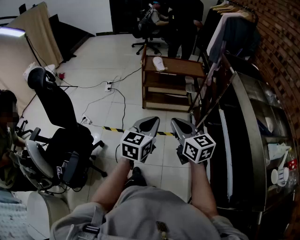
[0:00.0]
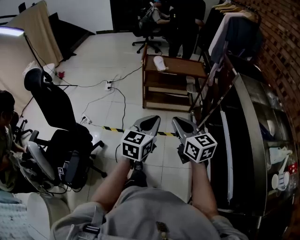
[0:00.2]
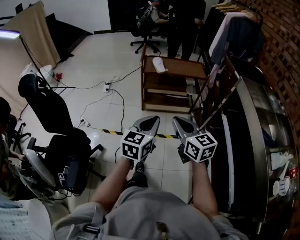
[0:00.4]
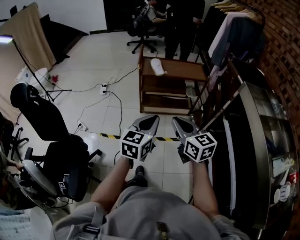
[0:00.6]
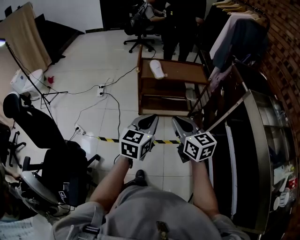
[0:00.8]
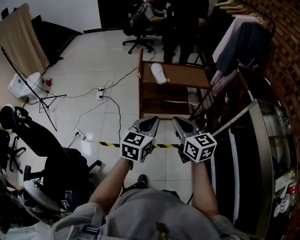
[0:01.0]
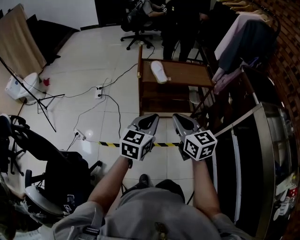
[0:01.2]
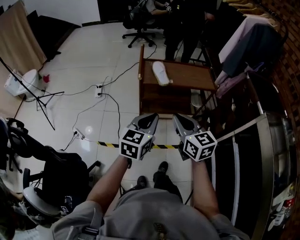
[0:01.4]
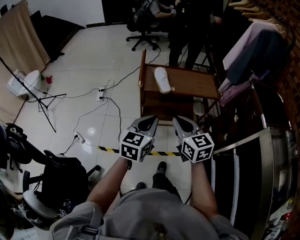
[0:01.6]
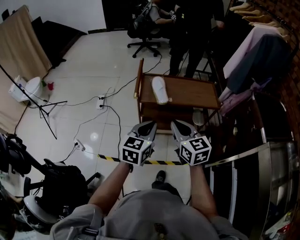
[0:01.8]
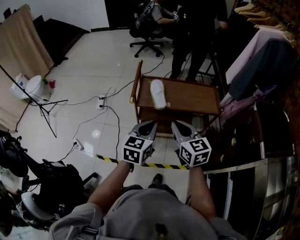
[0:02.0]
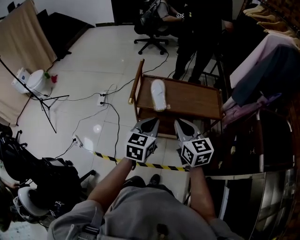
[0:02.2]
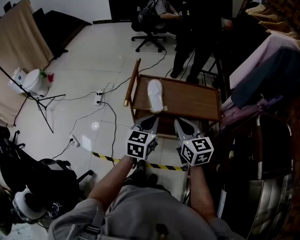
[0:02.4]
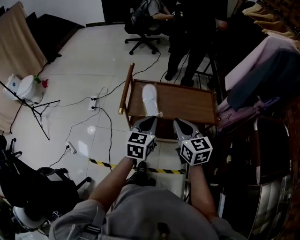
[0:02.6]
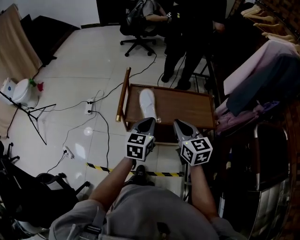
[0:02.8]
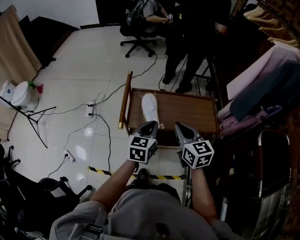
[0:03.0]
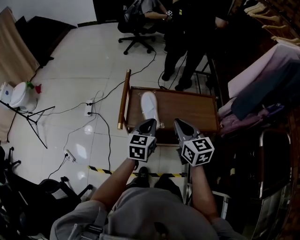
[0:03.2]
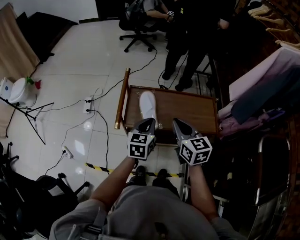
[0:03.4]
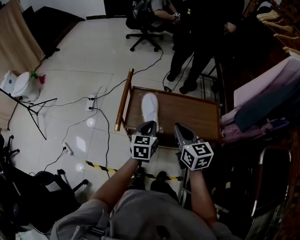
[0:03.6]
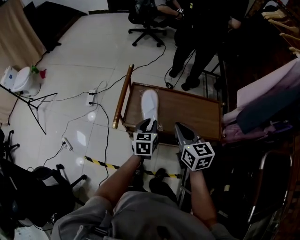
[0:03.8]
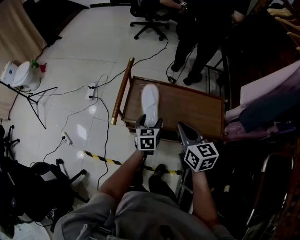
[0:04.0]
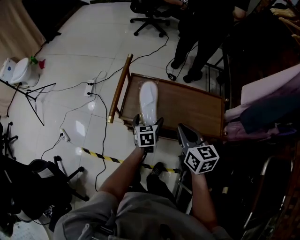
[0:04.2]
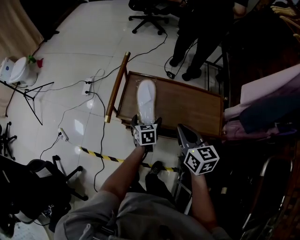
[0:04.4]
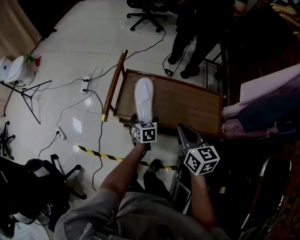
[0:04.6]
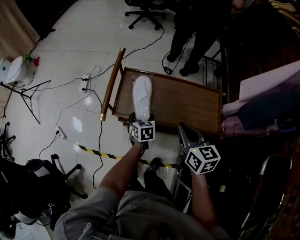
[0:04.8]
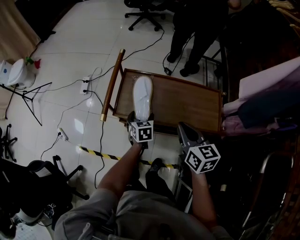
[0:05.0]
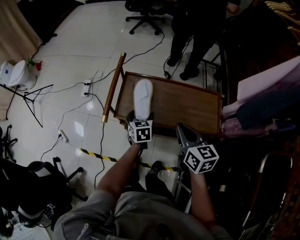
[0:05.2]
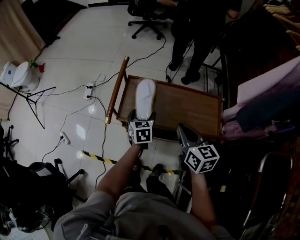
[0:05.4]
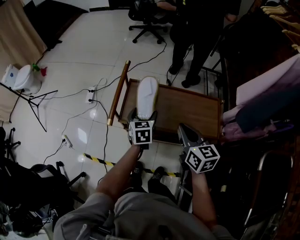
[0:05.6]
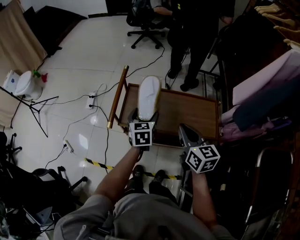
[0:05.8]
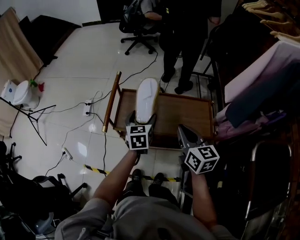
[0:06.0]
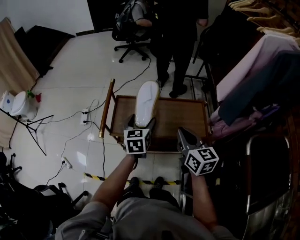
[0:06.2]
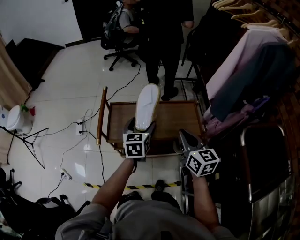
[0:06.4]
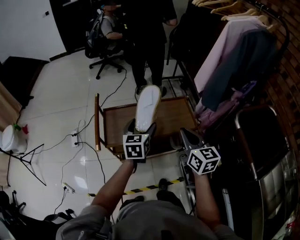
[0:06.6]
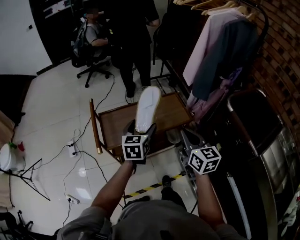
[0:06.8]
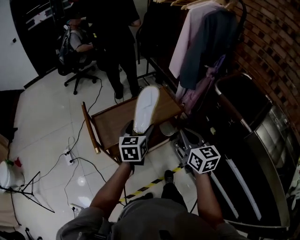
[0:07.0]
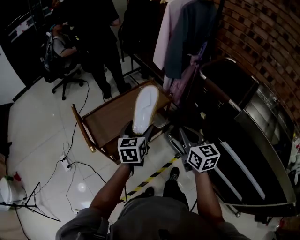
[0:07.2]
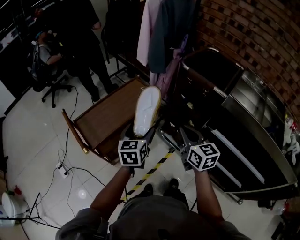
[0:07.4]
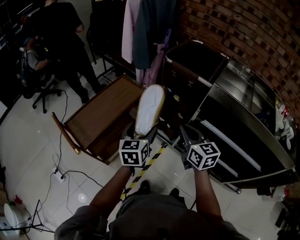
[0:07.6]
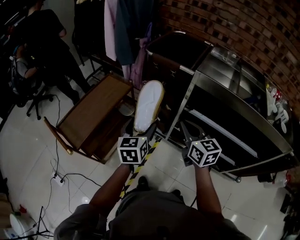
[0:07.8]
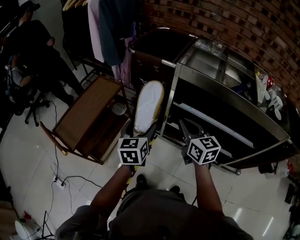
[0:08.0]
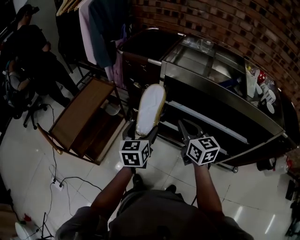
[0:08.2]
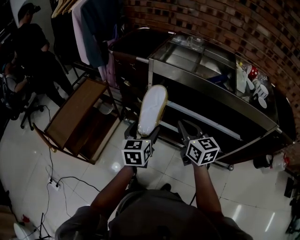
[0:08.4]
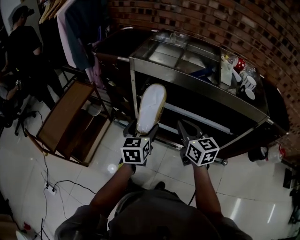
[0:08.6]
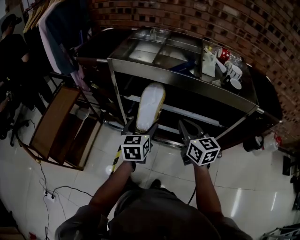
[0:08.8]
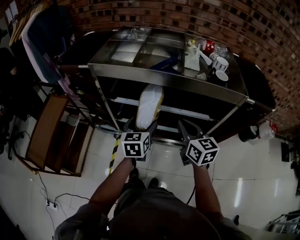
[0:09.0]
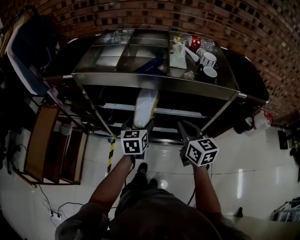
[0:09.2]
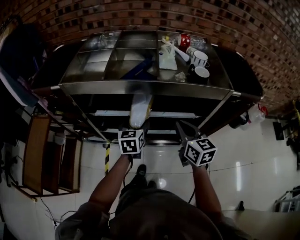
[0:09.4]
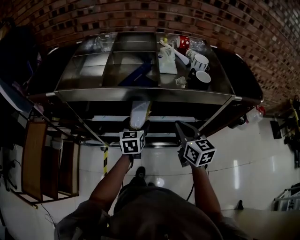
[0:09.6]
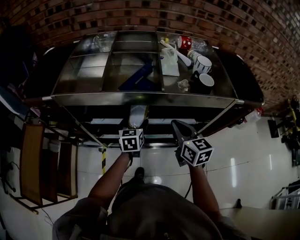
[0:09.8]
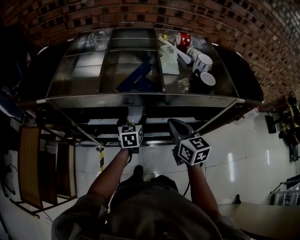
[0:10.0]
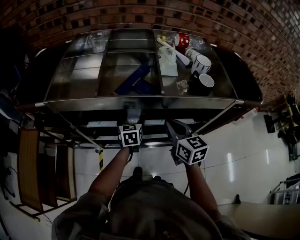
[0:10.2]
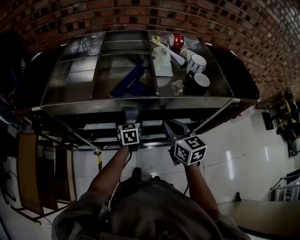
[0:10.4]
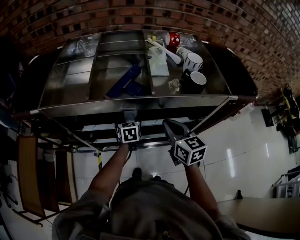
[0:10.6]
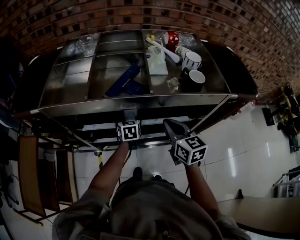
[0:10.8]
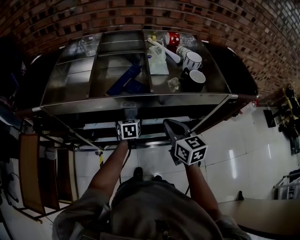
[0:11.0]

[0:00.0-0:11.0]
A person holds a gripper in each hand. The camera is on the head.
0:00.0 to 0:01.6: Both grippers travel together forward, about 40 cm.
0:01.6 to 0:03.2: Both grippers travel together forward, roughly 30 cm.
0:03.2 to 0:04.8: The left gripper heads downward, covering approximately 20 cm, turns by roughly 40 degrees, and opens up, while the right gripper goes some 10 cm downward and to the right.
0:04.8 to 0:06.2: The left gripper is displaced upward by roughly 20 cm, and swivels some 30 degrees, while the right gripper is displaced upward by about 10 cm.
0:06.2 to 0:07.8: The right gripper changes place by roughly 40 cm, and rotates some 60 degrees, while the left gripper changes place by some 40 cm, and changes its angle by roughly 60 degrees.
0:07.8 to 0:09.4: The pair of grippers is taken some 50 cm. The left gripper swivels approximately 30 degrees. Meanwhile the right gripper turns by roughly 30 degrees.
0:09.4 to 0:11.0: The right gripper heads forward, covering some 5 cm. The left gripper goes approximately 15 cm forward and downward.

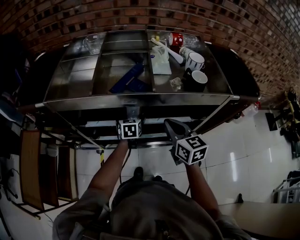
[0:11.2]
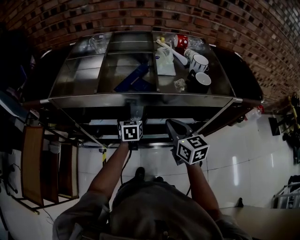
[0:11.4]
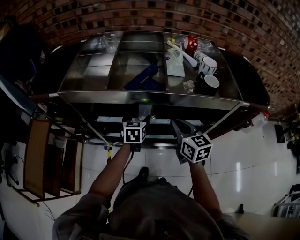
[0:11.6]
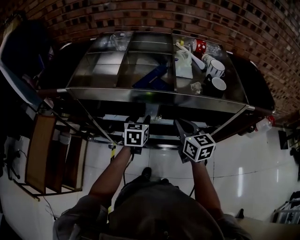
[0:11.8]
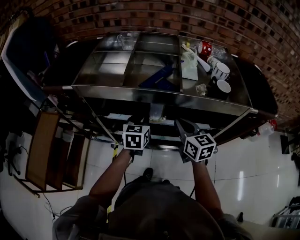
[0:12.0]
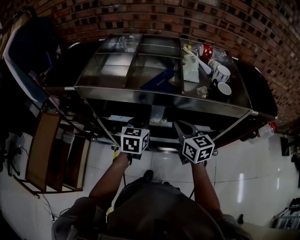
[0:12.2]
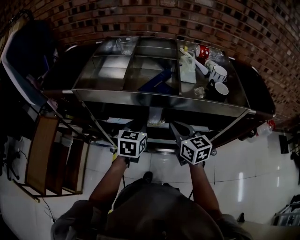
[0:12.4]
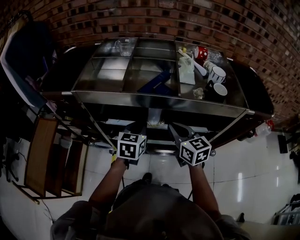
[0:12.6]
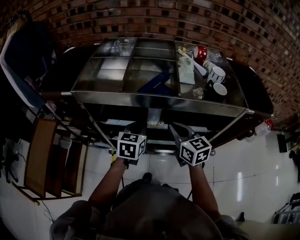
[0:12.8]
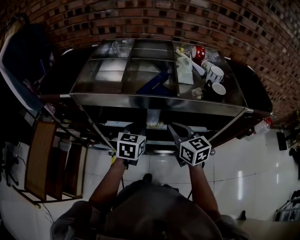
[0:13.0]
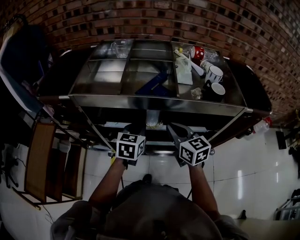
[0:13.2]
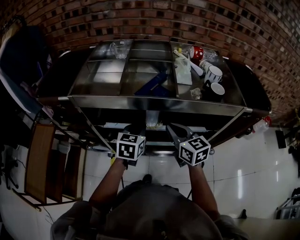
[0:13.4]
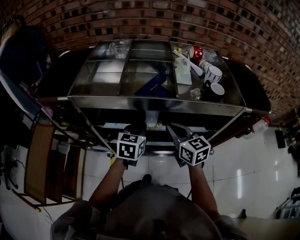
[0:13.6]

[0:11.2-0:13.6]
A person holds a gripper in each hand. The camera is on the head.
0:11.2 to 0:12.4: The left gripper is displaced upward, backward and to the left by roughly 15 cm, and closes up, while the right gripper goes about 5 cm to the left.
0:12.4 to 0:13.6: There are only small adjustments of the grippers.

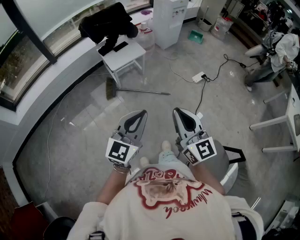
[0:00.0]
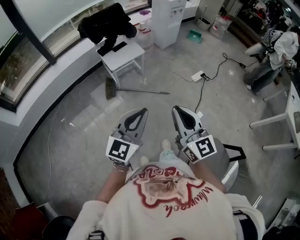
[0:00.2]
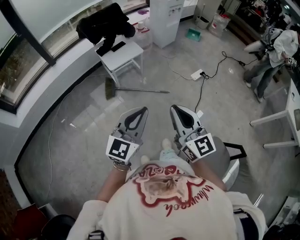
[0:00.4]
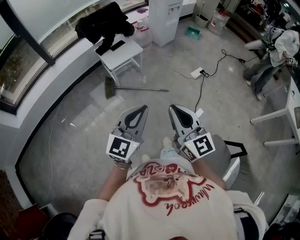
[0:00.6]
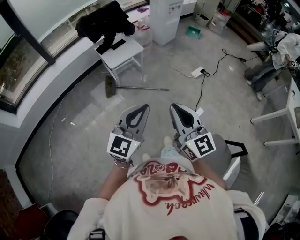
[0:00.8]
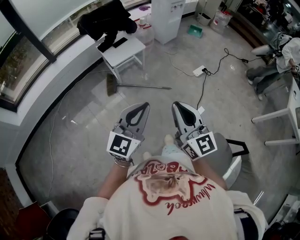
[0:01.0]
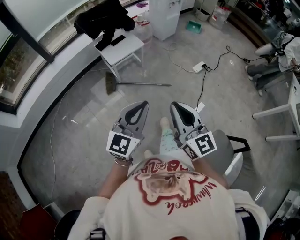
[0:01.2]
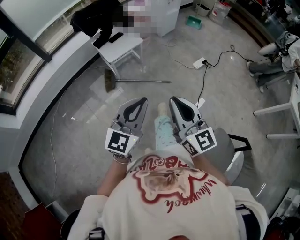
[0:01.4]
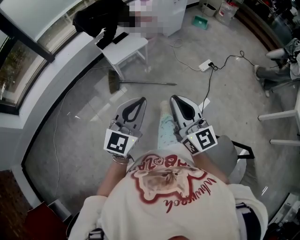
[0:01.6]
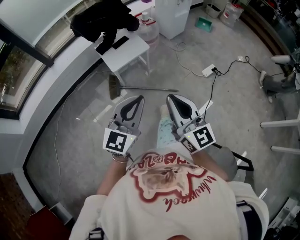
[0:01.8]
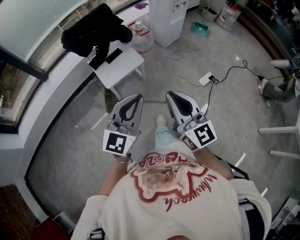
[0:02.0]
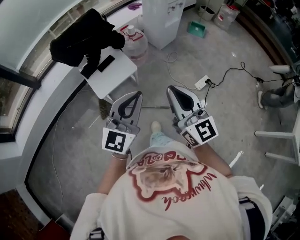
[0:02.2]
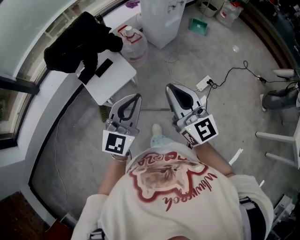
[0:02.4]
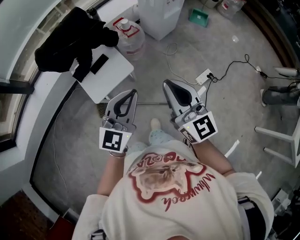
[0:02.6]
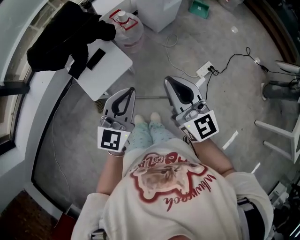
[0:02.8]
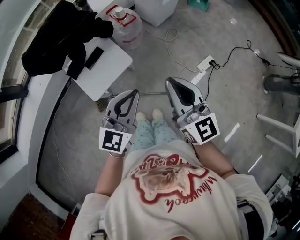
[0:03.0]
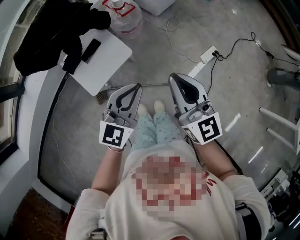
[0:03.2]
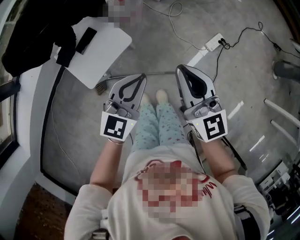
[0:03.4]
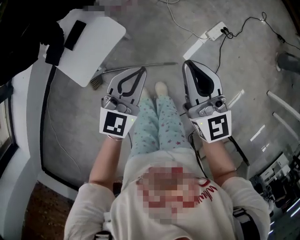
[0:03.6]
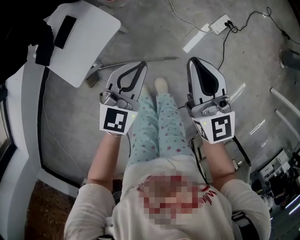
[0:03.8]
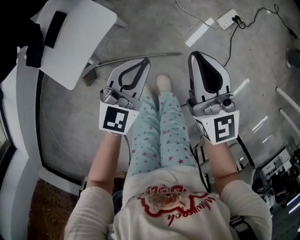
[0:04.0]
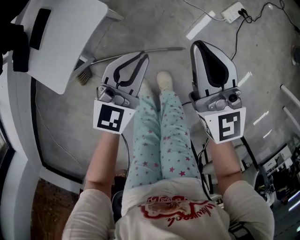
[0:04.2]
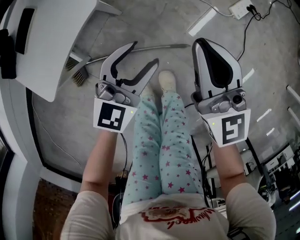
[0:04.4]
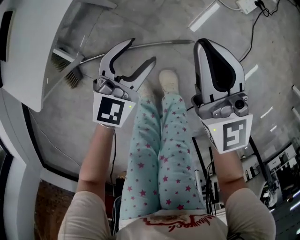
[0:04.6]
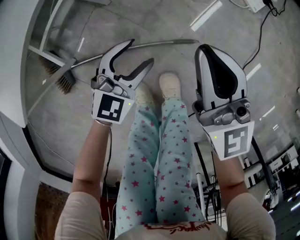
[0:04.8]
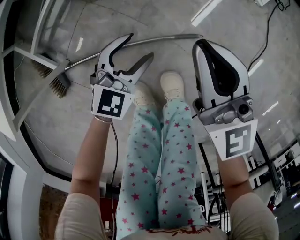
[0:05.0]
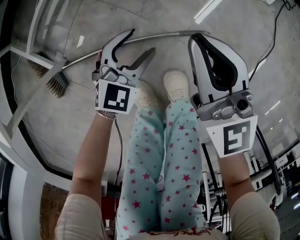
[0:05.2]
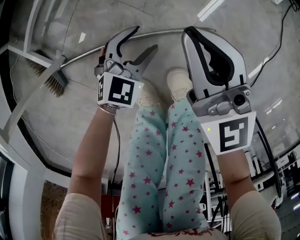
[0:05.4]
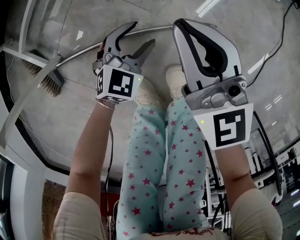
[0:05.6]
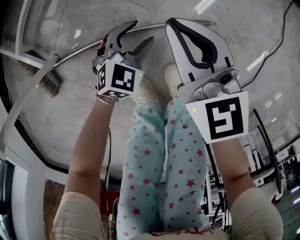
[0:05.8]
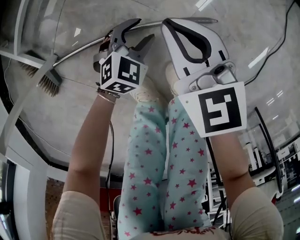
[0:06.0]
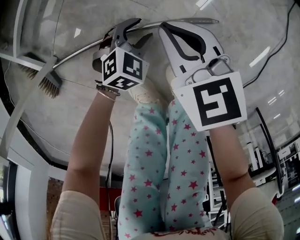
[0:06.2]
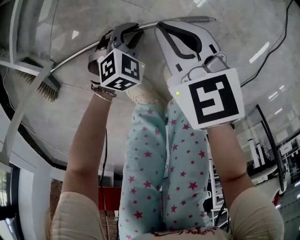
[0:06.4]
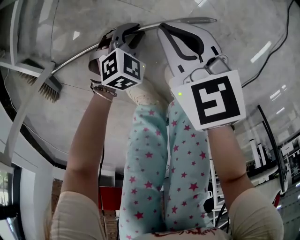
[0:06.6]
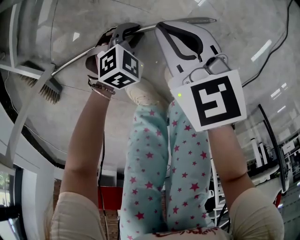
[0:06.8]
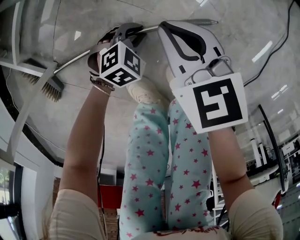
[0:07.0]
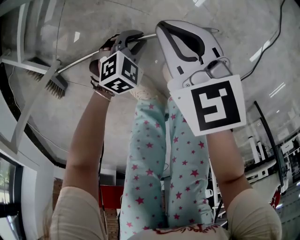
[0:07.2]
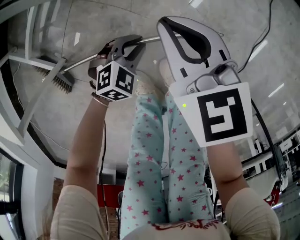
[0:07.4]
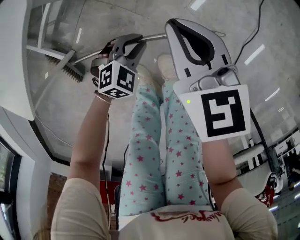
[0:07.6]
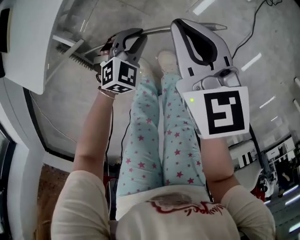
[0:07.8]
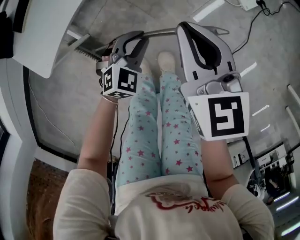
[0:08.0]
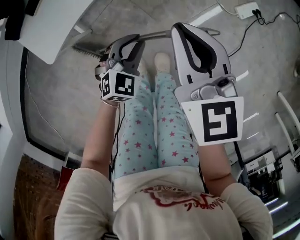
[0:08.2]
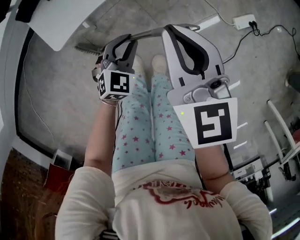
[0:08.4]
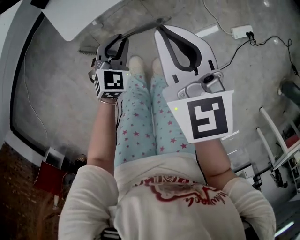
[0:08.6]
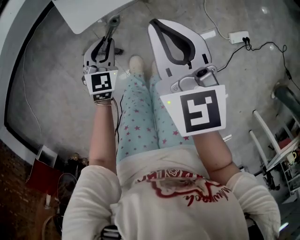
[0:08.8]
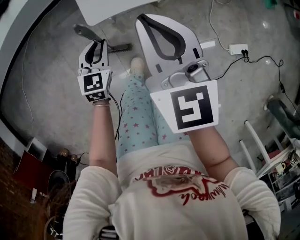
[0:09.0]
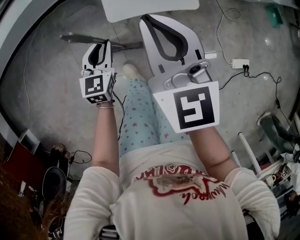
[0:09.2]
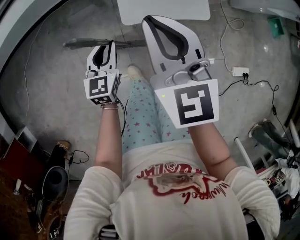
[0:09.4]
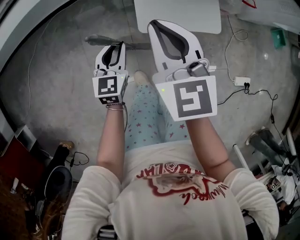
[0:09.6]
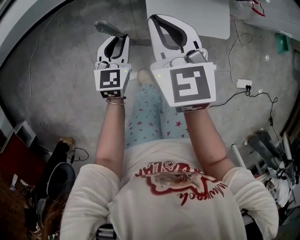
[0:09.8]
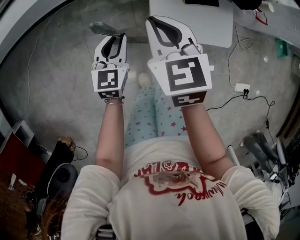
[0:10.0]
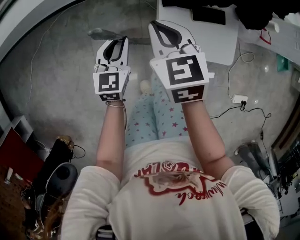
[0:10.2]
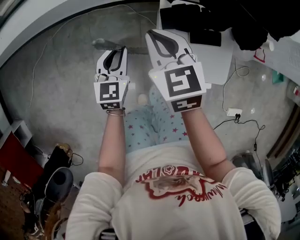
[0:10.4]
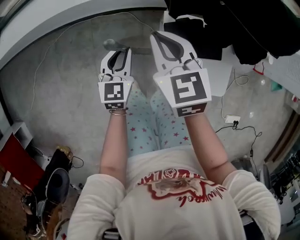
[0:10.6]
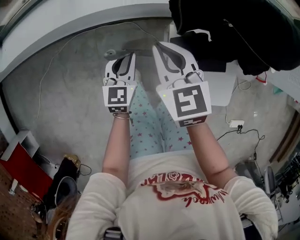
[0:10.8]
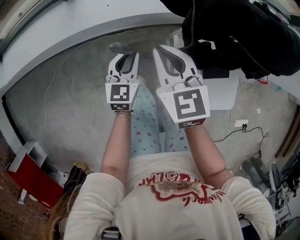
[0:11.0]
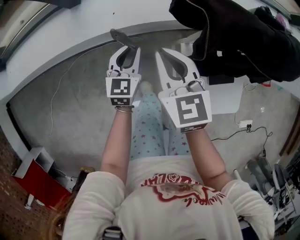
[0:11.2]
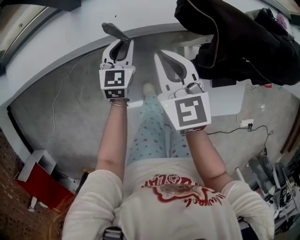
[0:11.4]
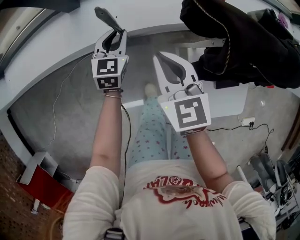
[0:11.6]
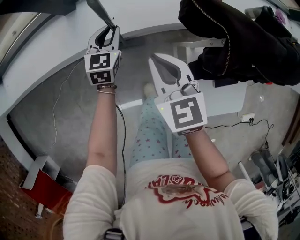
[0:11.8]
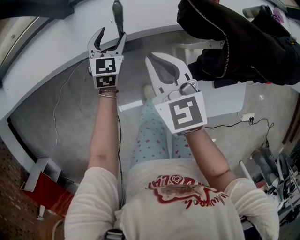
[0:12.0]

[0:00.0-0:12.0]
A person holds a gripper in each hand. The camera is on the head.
0:00.0 to 0:01.6: Both grippers move forward, some 10 cm.
0:01.6 to 0:03.0: Both grippers are carried forward, roughly 50 cm.
0:03.0 to 0:04.4: The grippers both shift downward by approximately 40 cm. The left gripper rotates roughly 20 degrees, and opens its fingers.
0:04.4 to 0:06.0: Both grippers move downward, approximately 40 cm. The left gripper turns by some 30 degrees; the right gripper swivels roughly 30 degrees.
0:06.0 to 0:07.6: Both grippers move upward, approximately 15 cm. The left gripper closes up.
0:07.6 to 0:09.0: The two grippers go approximately 35 cm upward. The left gripper rotates roughly 80 degrees. The right gripper rotates some 40 degrees.
0:09.0 to 0:10.4: Both grippers travel together forward and to the left, roughly 35 cm. The right gripper changes its angle by some 30 degrees.
0:10.4 to 0:12.0: The right gripper heads forward and to the left, covering some 20 cm. The left gripper heads forward, covering roughly 35 cm, and opens up.
